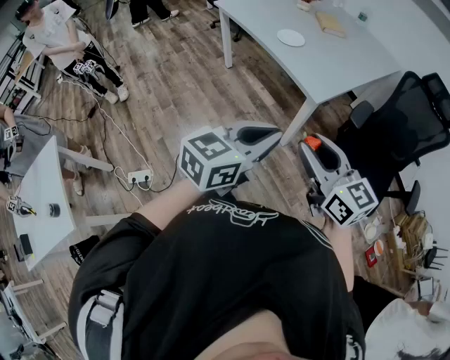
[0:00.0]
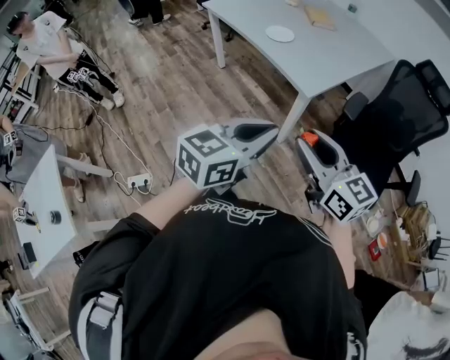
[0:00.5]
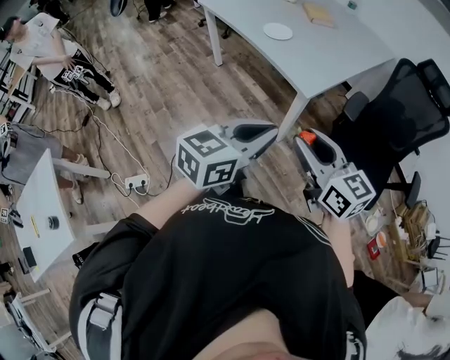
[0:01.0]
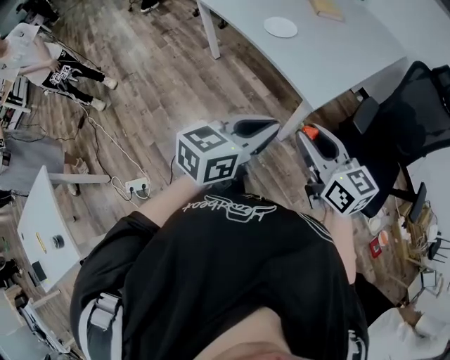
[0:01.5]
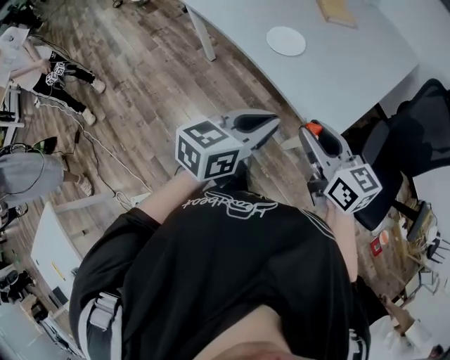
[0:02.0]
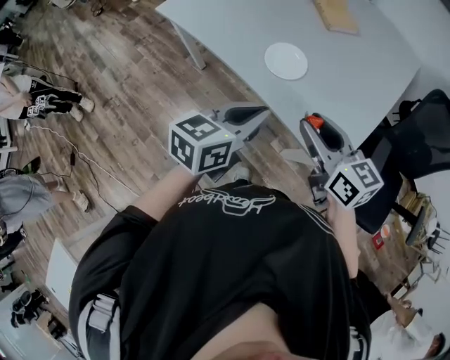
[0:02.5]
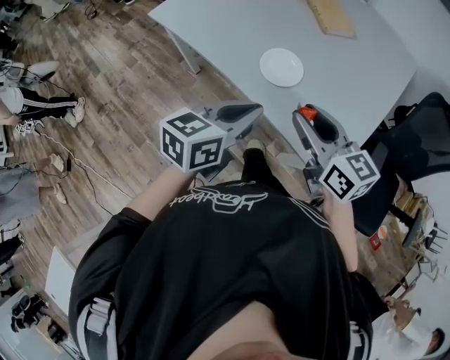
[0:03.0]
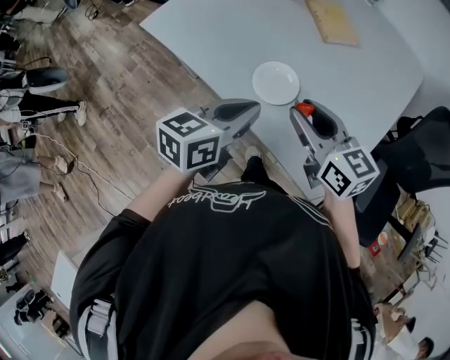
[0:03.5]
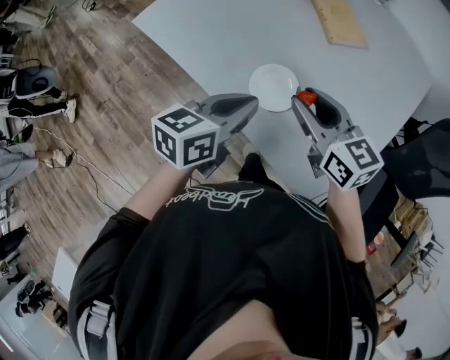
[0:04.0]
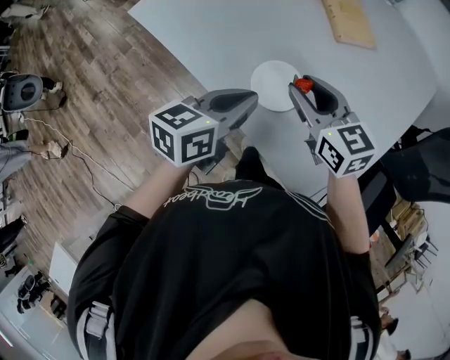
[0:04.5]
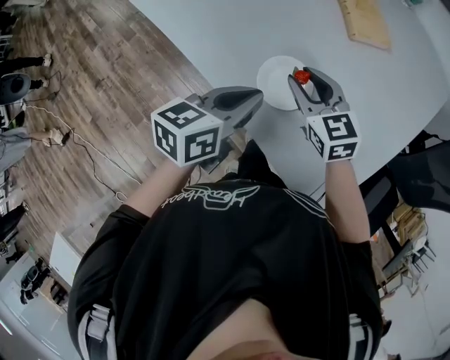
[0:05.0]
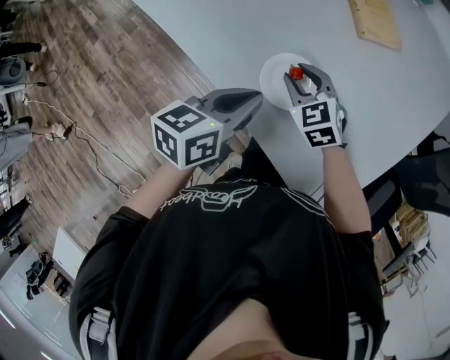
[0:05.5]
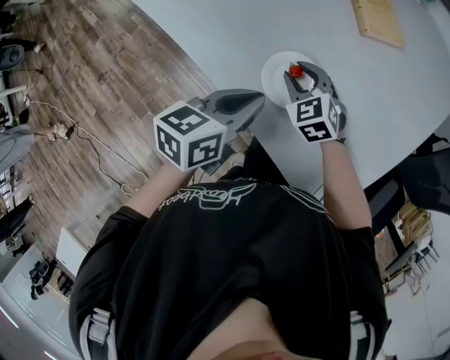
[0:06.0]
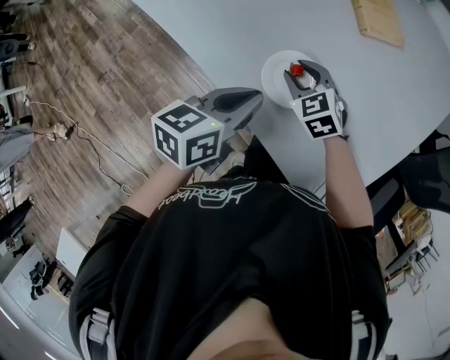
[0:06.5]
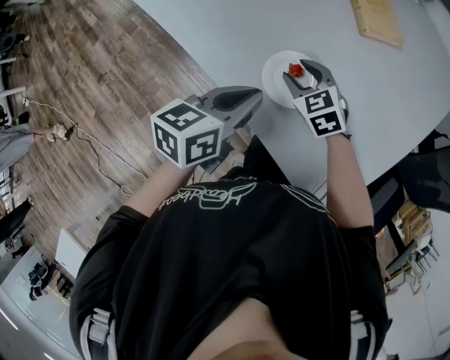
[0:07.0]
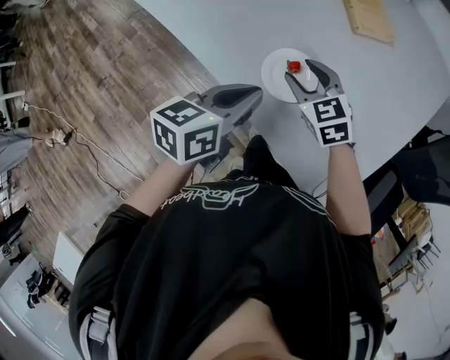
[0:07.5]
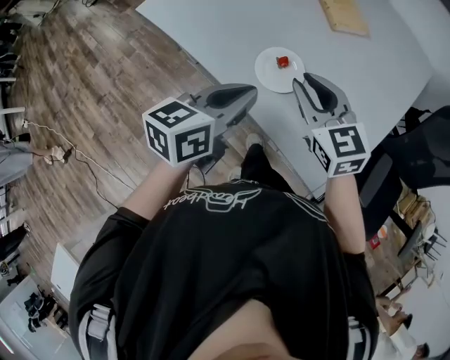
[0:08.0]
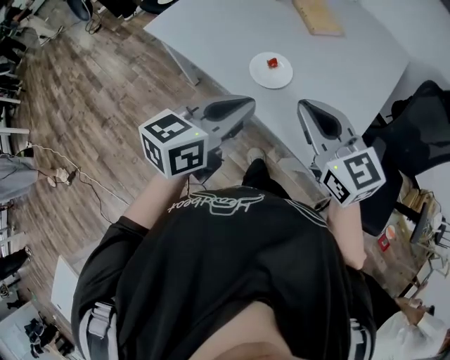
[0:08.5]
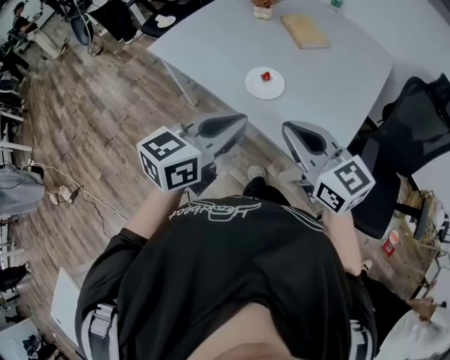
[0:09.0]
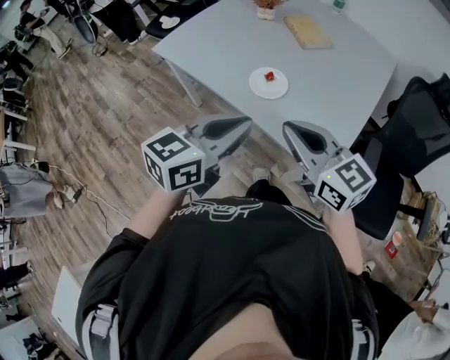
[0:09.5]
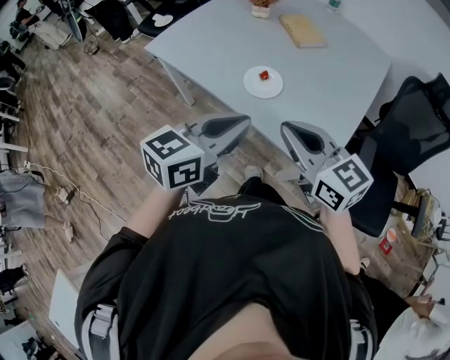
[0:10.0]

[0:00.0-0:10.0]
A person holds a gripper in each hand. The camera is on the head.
0:00.0 to 0:02.0: The two grippers go about 35 cm forward.
0:02.0 to 0:04.0: The two grippers go approximately 35 cm forward.
0:04.0 to 0:06.0: The left gripper moves downward, some 10 cm, while the right gripper moves downward and forward, roughly 20 cm, and changes its angle by some 40 degrees.
0:06.0 to 0:08.0: The right gripper heads upward and backward, covering roughly 20 cm, and swivels some 30 degrees. Meanwhile the left gripper travels upward and backward by approximately 10 cm.
0:08.0 to 0:10.0: Both grippers travel together backward and upward, about 20 cm.

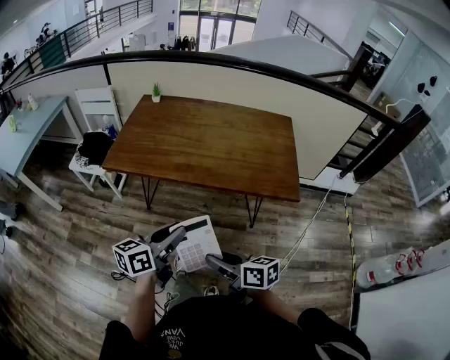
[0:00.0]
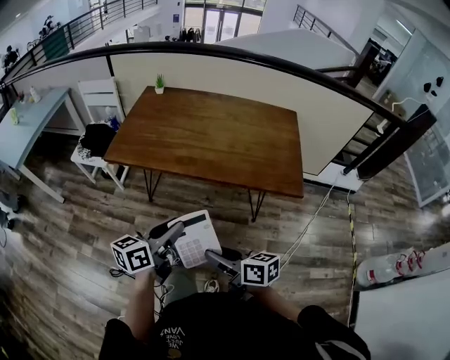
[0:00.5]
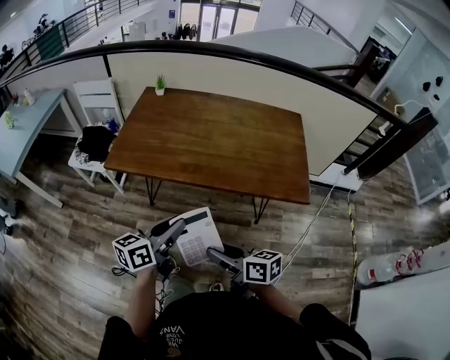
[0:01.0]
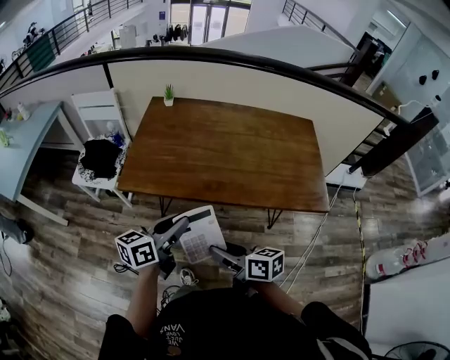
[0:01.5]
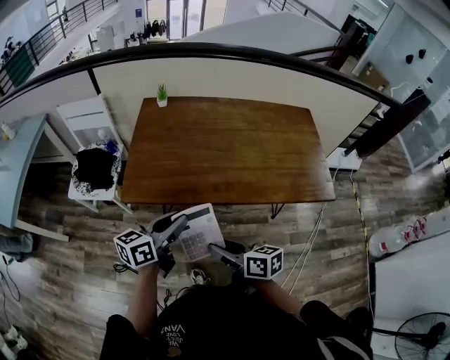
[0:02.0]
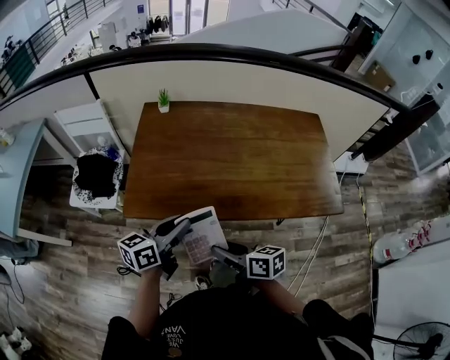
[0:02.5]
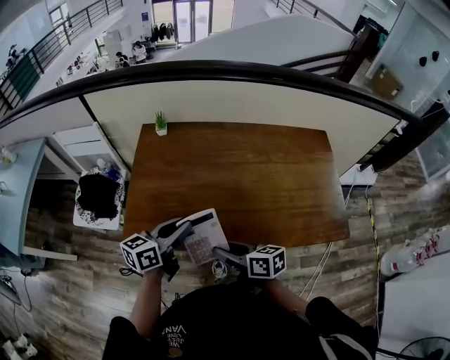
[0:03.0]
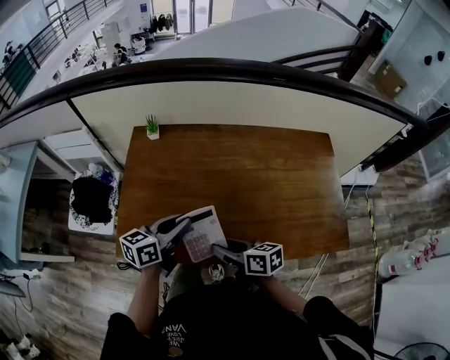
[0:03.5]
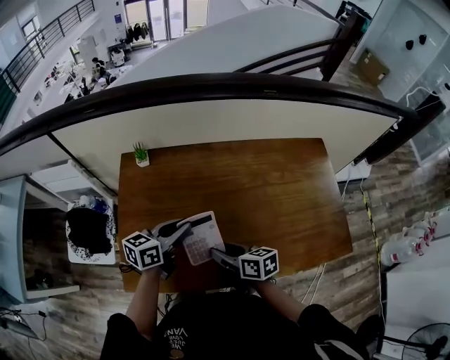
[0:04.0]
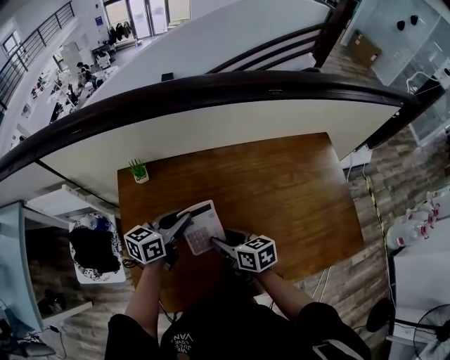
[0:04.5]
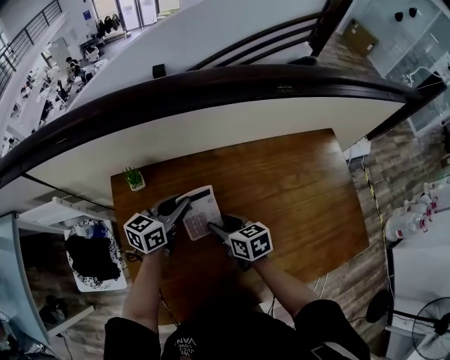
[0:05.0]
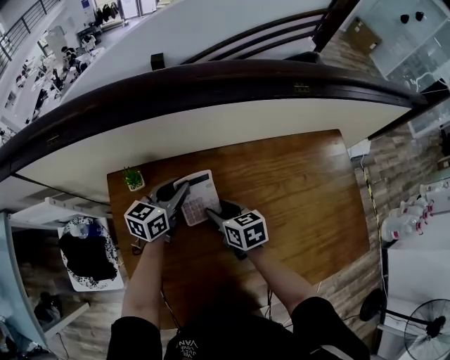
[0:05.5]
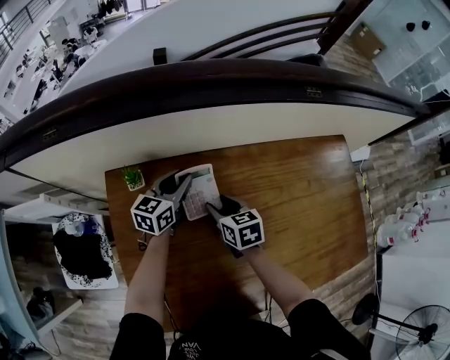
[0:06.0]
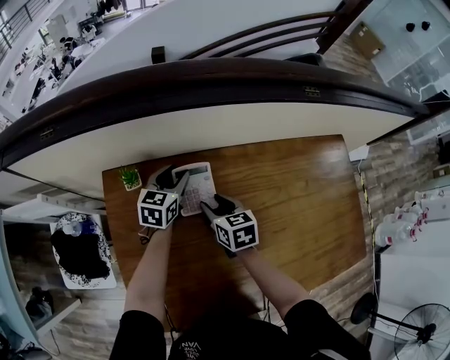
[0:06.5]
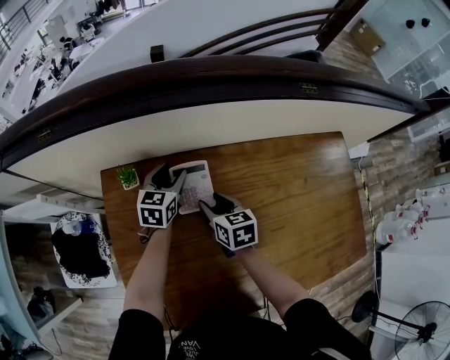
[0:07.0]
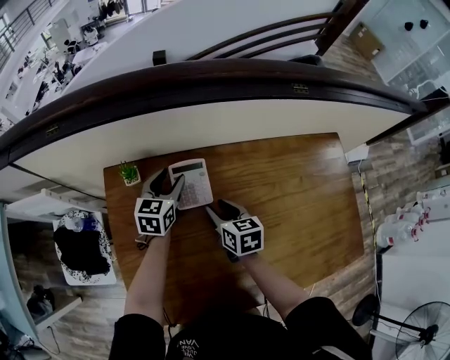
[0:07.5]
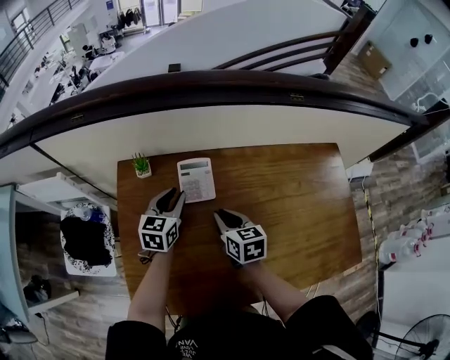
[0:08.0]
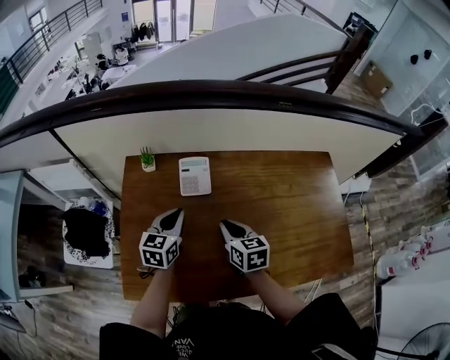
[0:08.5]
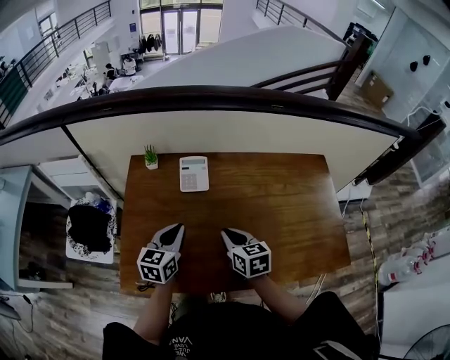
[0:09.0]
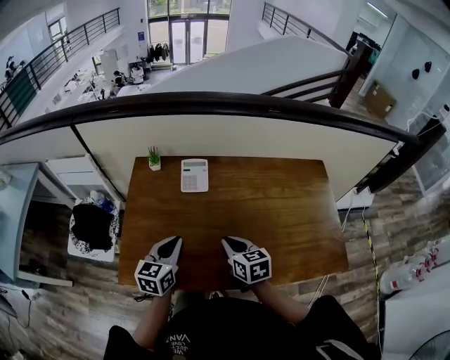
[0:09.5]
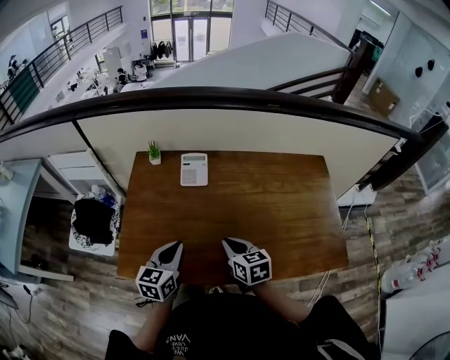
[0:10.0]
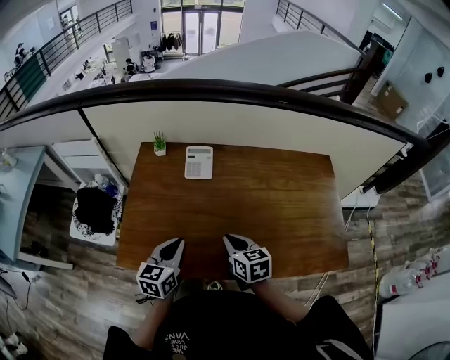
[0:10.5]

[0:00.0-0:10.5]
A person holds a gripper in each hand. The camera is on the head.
0:00.0 to 0:02.0: The right gripper goes about 30 cm to the left and forward, while the left gripper moves forward and to the left, some 30 cm.
0:02.0 to 0:04.0: The grippers both shift forward by about 30 cm.
0:04.0 to 0:06.5: The right gripper travels forward by about 25 cm, and turns by approximately 30 degrees. Meanwhile the left gripper goes some 30 cm forward and downward, changes its angle by some 30 degrees, and opens its fingers.
0:06.5 to 0:08.5: The right gripper goes about 20 cm backward and upward, and closes; the left gripper goes roughly 20 cm backward, and closes its fingers.
0:08.5 to 0:10.5: The left gripper shifts about 20 cm backward. Meanwhile the right gripper is displaced backward by about 15 cm.

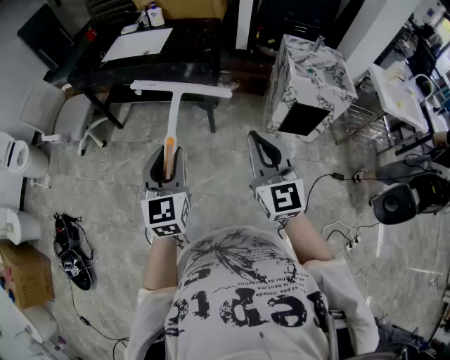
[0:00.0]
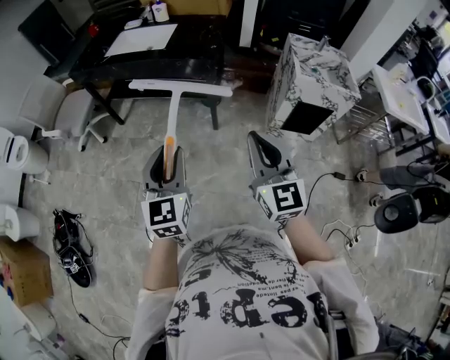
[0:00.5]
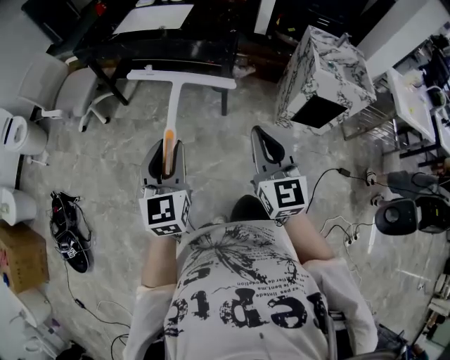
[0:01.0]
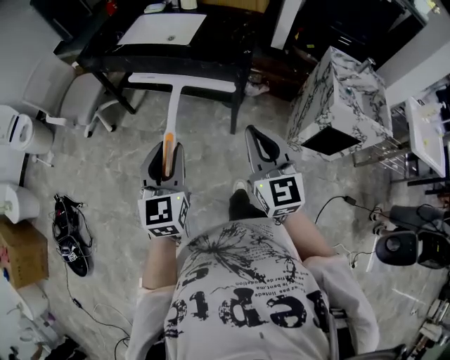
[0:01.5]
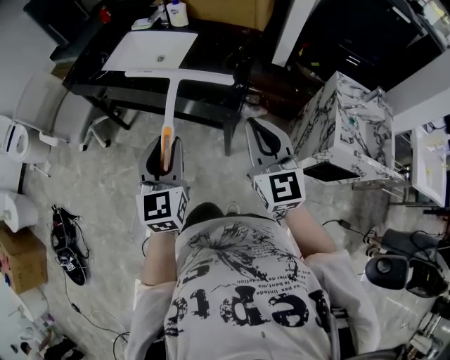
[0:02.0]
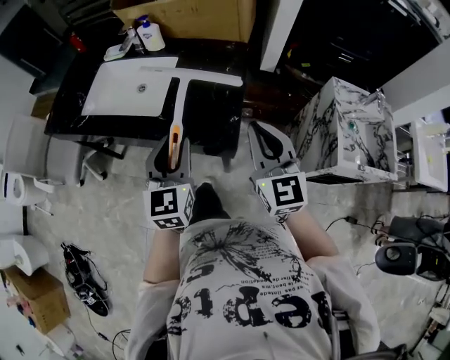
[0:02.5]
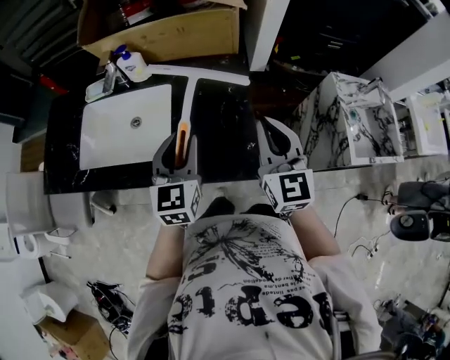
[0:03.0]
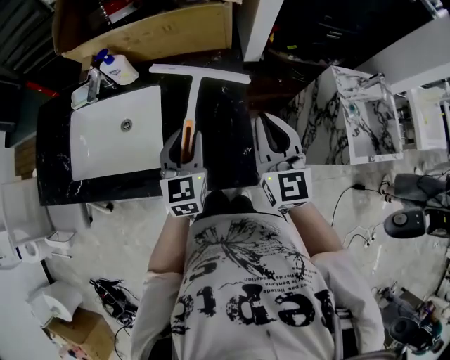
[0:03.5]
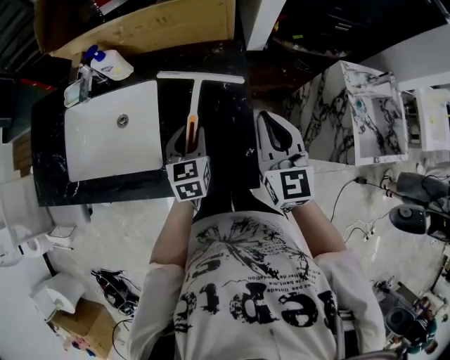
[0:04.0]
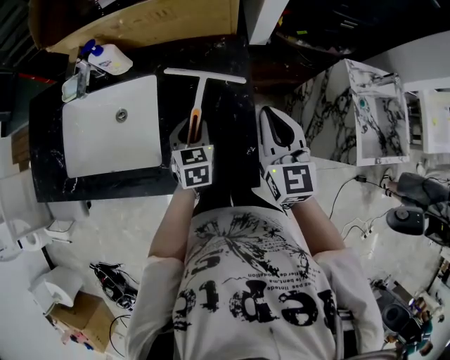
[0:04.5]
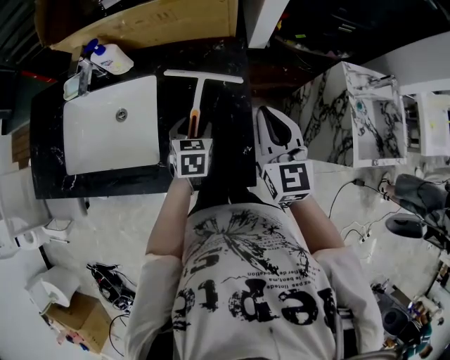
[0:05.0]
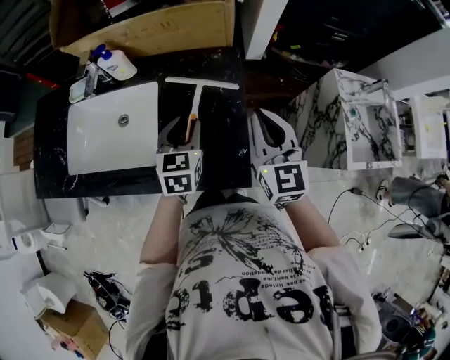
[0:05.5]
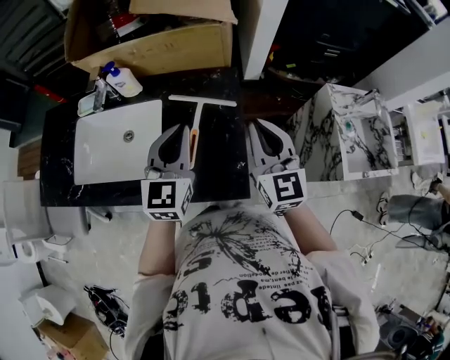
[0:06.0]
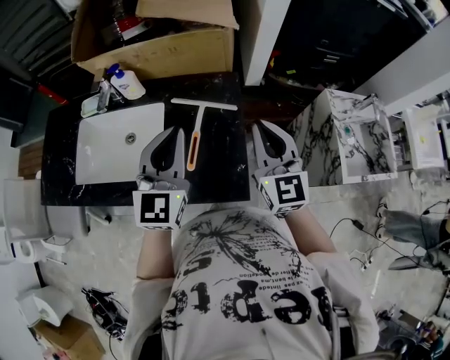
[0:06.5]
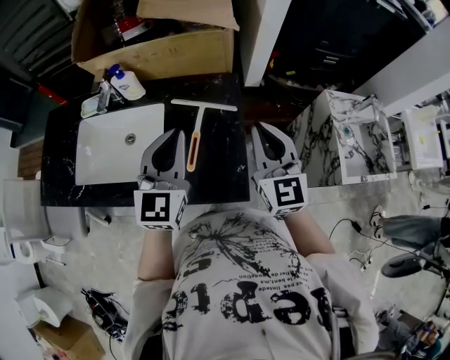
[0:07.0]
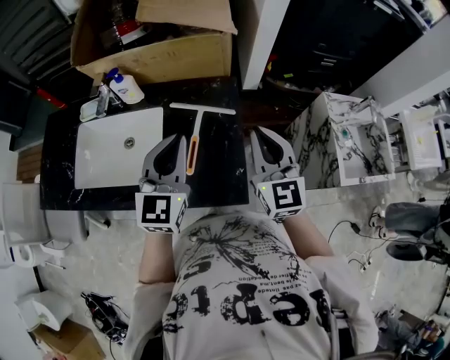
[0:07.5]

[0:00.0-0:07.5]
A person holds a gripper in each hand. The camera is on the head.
0:00.0 to 0:02.0: Both grippers travel together forward, roughly 40 cm.
0:02.0 to 0:04.0: The left gripper goes some 50 cm forward and downward, and turns by about 30 degrees; the right gripper heads forward, covering some 35 cm, and changes its angle by approximately 30 degrees.
0:04.0 to 0:05.5: The left gripper heads upward, covering roughly 5 cm.
0:05.5 to 0:07.5: The right gripper goes approximately 5 cm upward. The left gripper moves upward, approximately 15 cm, swivels some 30 degrees, and closes.
